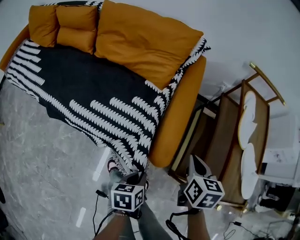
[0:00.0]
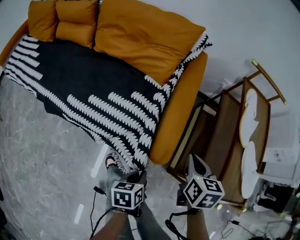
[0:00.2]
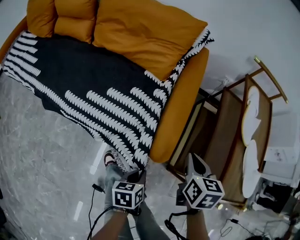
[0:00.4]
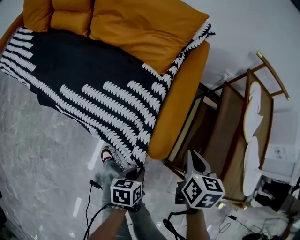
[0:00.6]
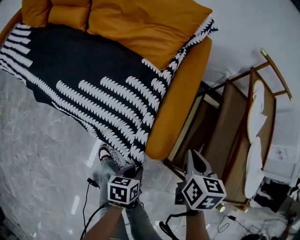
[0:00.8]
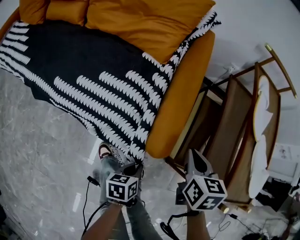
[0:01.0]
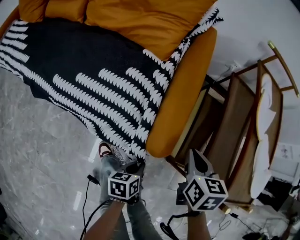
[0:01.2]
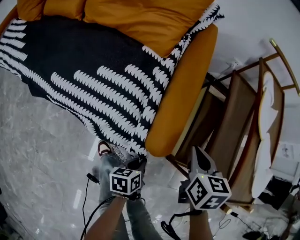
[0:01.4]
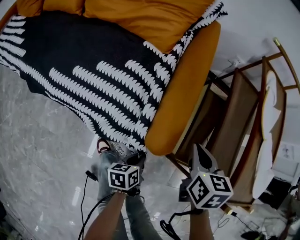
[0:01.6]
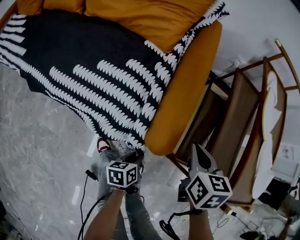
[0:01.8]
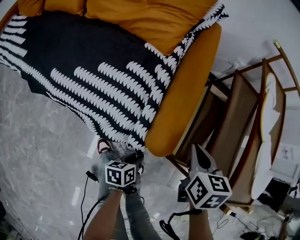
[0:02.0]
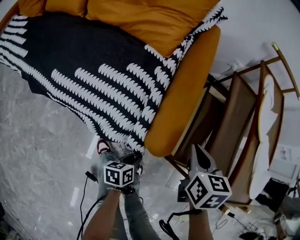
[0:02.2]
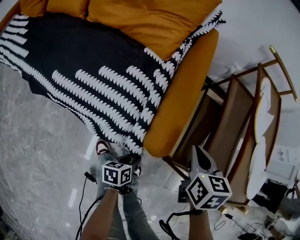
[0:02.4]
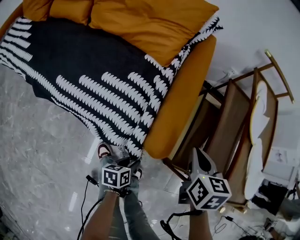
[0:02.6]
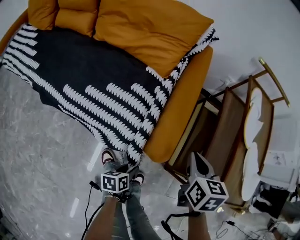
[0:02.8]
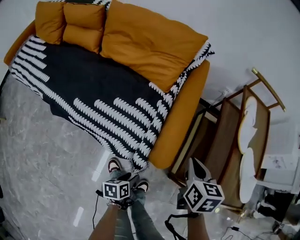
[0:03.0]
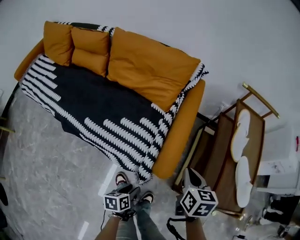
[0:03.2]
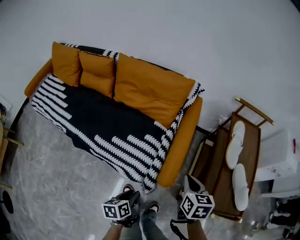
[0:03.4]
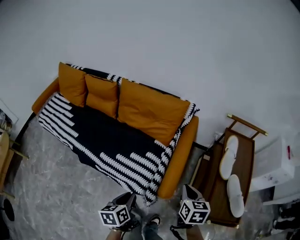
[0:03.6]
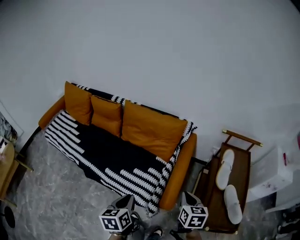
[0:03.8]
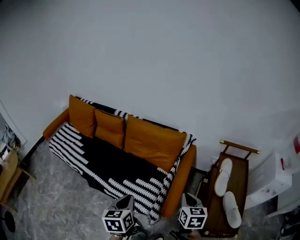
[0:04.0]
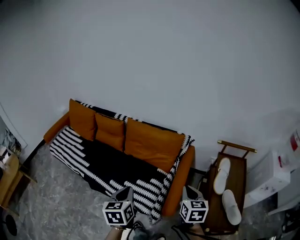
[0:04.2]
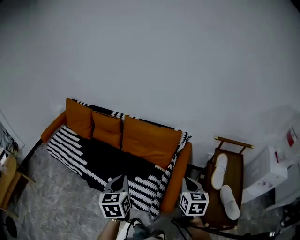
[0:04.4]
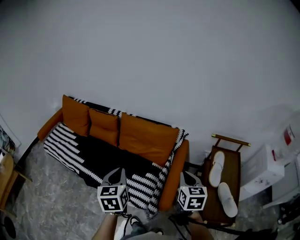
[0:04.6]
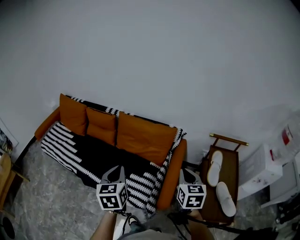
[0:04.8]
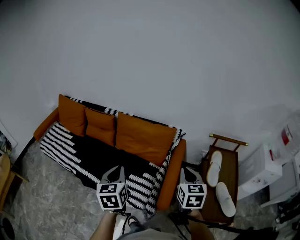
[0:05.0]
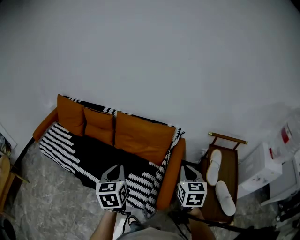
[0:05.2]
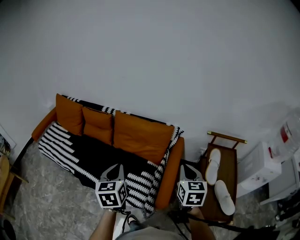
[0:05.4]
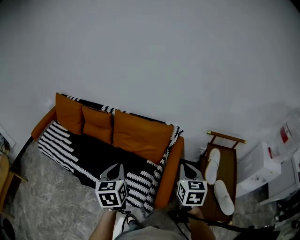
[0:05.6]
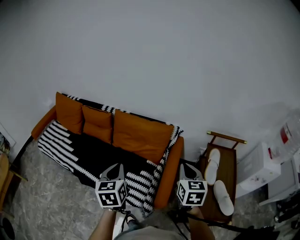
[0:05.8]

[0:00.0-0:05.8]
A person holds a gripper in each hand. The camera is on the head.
0:00.0 to 0:01.4: The right gripper is displaced downward by some 10 cm. The left gripper moves downward, about 15 cm.
0:01.4 to 0:02.8: The right gripper shifts approximately 5 cm upward, while the left gripper ends up roughly 5 cm from where it was, and opens.
0:02.8 to 0:04.4: The right gripper goes roughly 35 cm upward, and changes its angle by some 20 degrees. The left gripper heads upward, covering roughly 60 cm, turns by approximately 50 degrees, and closes up.
0:04.4 to 0:05.8: The grippers move only a little.

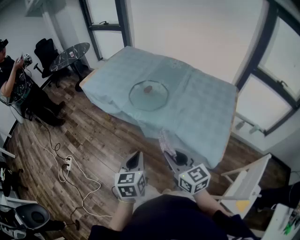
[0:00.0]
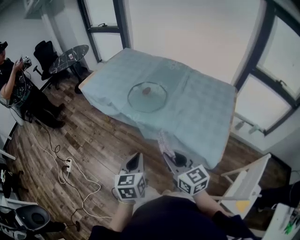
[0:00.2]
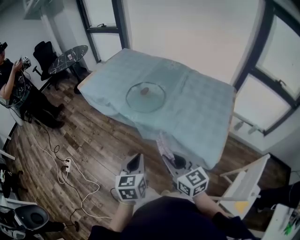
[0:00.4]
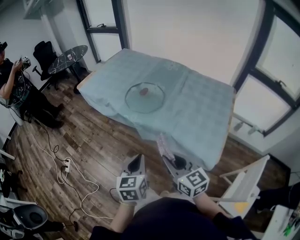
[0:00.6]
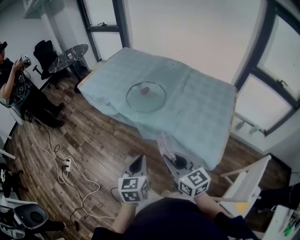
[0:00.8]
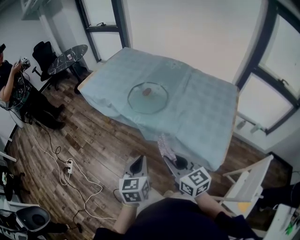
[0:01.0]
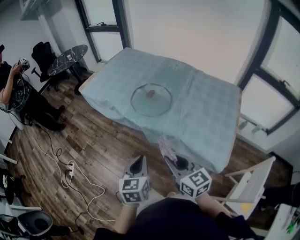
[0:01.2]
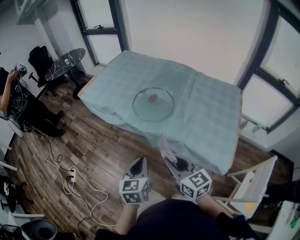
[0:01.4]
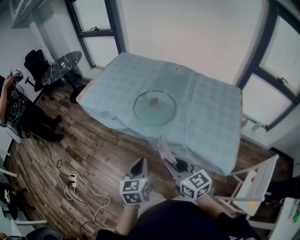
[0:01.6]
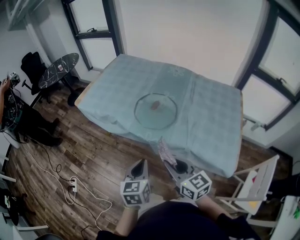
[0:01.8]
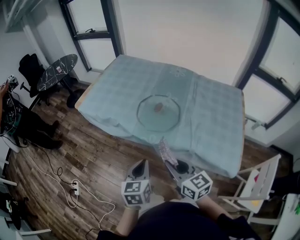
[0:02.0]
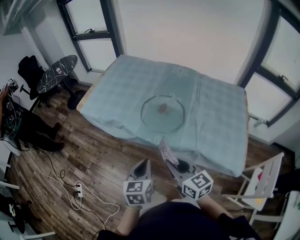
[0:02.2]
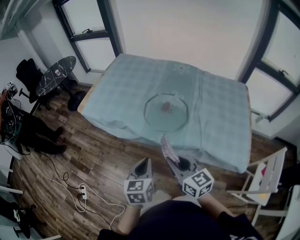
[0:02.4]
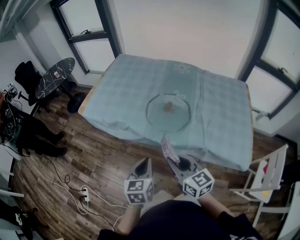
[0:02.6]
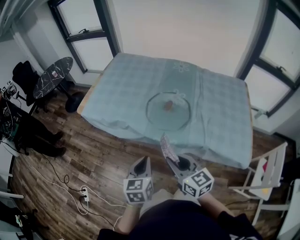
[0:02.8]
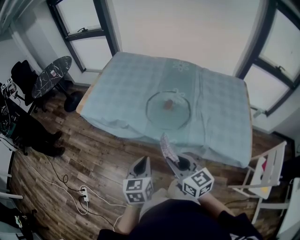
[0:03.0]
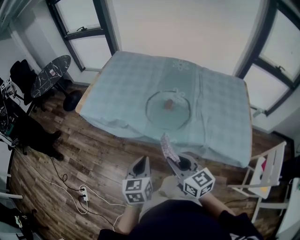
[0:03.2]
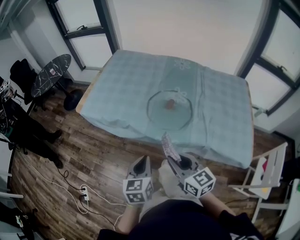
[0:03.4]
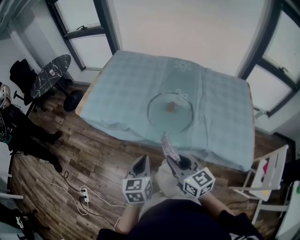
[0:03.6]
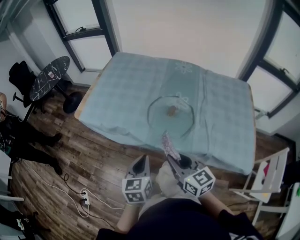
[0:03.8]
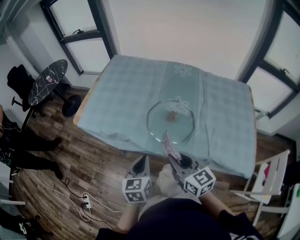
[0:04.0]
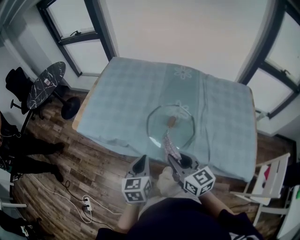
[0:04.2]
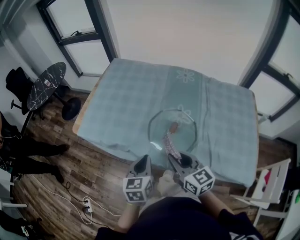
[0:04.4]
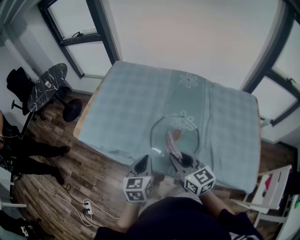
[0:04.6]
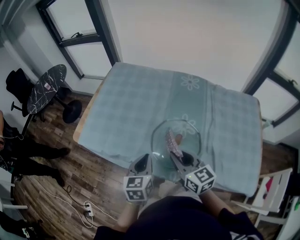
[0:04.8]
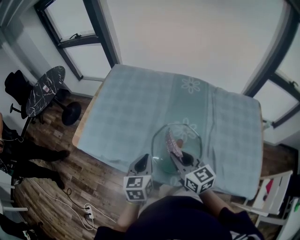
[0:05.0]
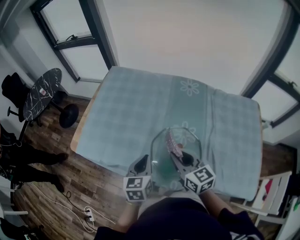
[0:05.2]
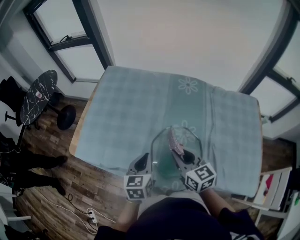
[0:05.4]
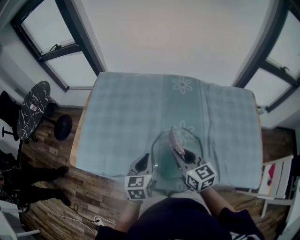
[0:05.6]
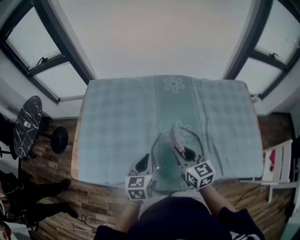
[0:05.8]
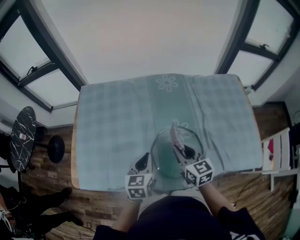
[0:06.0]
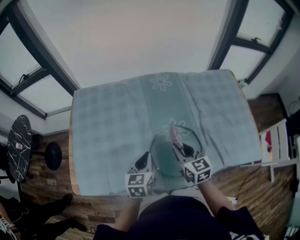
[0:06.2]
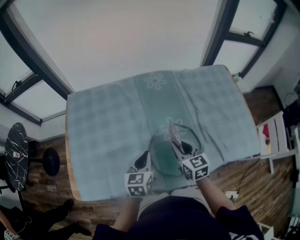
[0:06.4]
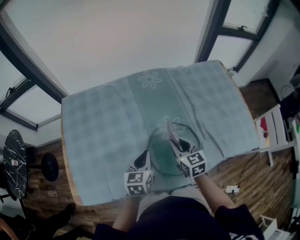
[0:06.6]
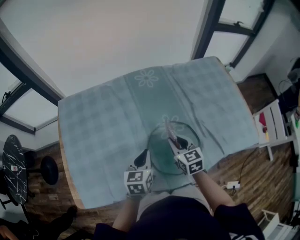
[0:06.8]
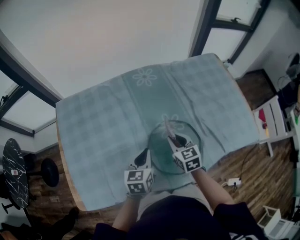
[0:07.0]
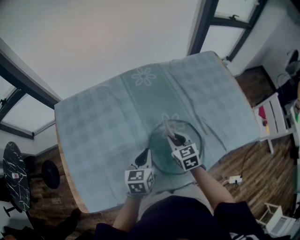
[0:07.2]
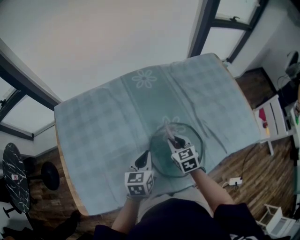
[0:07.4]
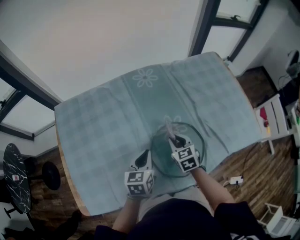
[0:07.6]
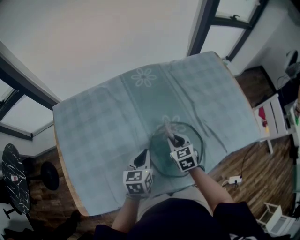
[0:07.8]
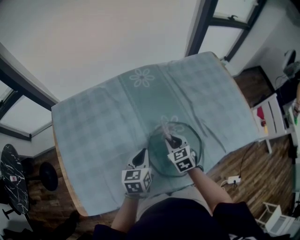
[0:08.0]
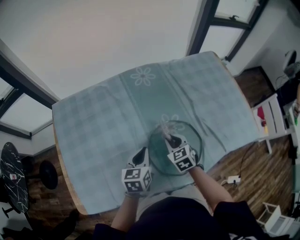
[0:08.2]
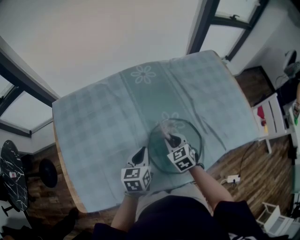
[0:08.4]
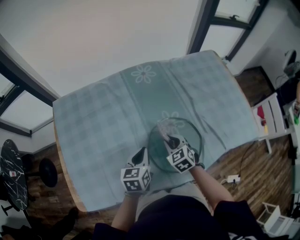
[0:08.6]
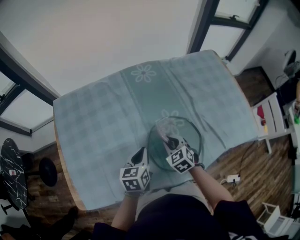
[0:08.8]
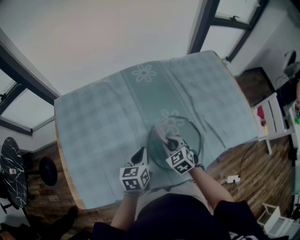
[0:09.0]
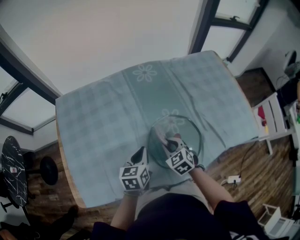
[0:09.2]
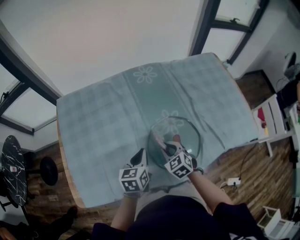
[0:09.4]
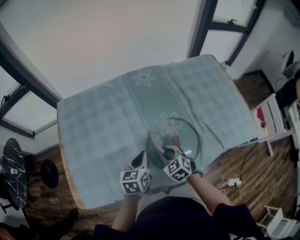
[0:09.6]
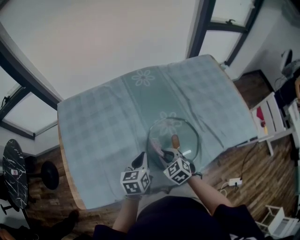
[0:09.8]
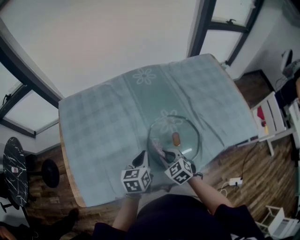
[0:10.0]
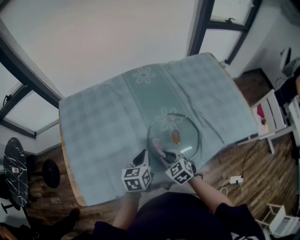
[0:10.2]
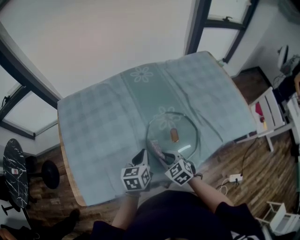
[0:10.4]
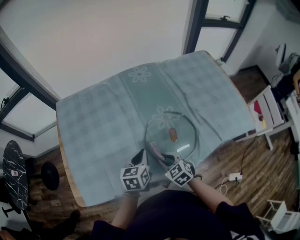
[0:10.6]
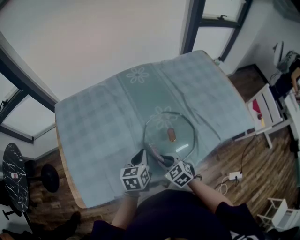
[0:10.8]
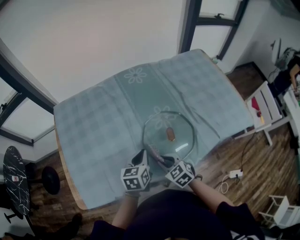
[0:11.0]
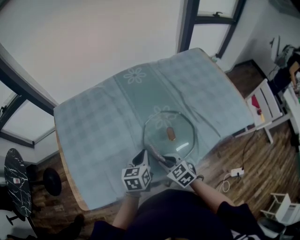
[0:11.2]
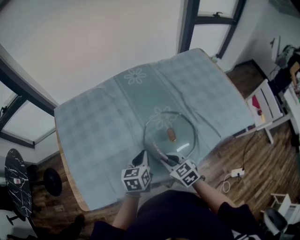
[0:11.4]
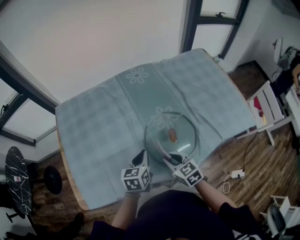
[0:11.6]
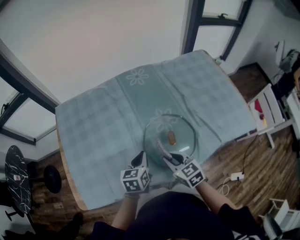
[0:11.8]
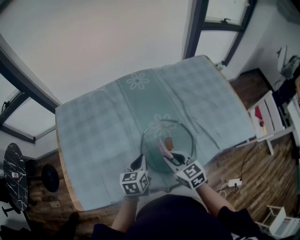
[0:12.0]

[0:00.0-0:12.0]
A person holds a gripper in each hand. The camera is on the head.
0:00.0 to 0:01.6: The left gripper travels forward by roughly 10 cm. The right gripper heads forward and to the left, covering roughly 10 cm.
0:01.6 to 0:03.0: Both grippers move to the left and forward, some 15 cm.
0:03.0 to 0:04.4: The grippers both shift forward by some 20 cm.
0:04.4 to 0:06.0: The left gripper changes place by roughly 20 cm, and rotates some 20 degrees. The right gripper shifts by roughly 20 cm, and rotates some 30 degrees.
0:06.0 to 0:07.6: The right gripper heads downward and forward, covering about 15 cm, and swivels some 30 degrees. The left gripper is displaced forward and downward by approximately 10 cm.
0:07.6 to 0:09.0: The right gripper travels backward by some 5 cm.
0:09.0 to 0:10.4: The right gripper heads backward, covering some 10 cm.
0:10.4 to 0:12.0: The right gripper shifts roughly 10 cm upward and to the right, and turns by about 20 degrees.

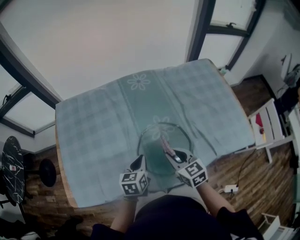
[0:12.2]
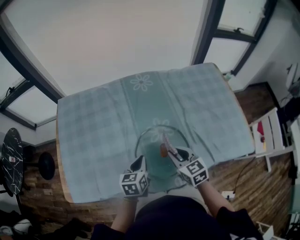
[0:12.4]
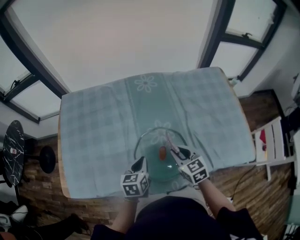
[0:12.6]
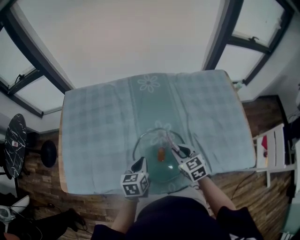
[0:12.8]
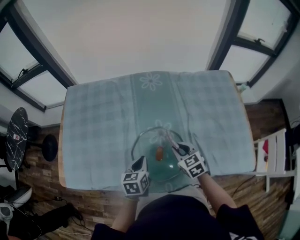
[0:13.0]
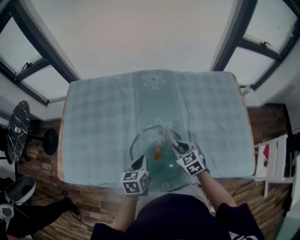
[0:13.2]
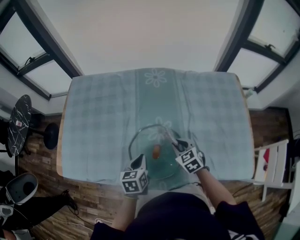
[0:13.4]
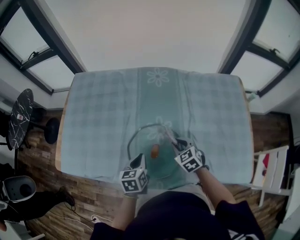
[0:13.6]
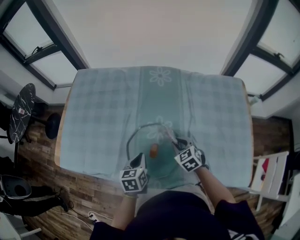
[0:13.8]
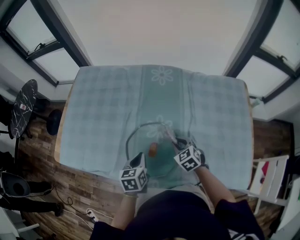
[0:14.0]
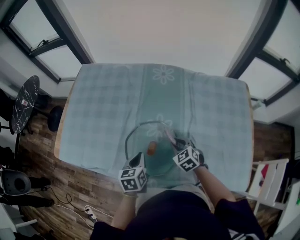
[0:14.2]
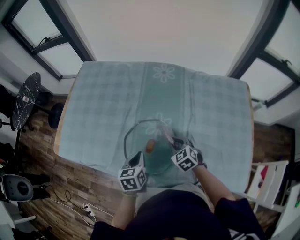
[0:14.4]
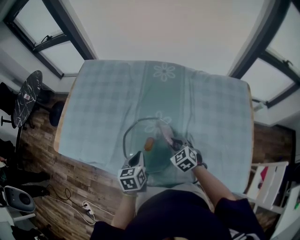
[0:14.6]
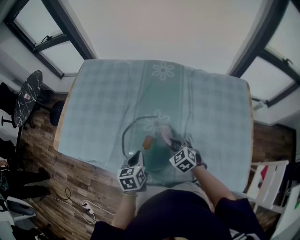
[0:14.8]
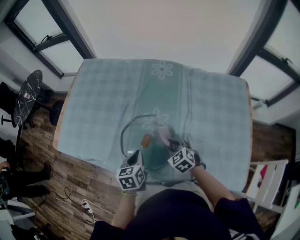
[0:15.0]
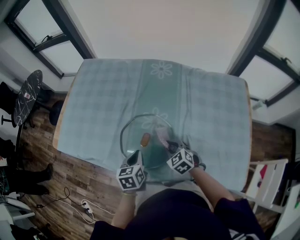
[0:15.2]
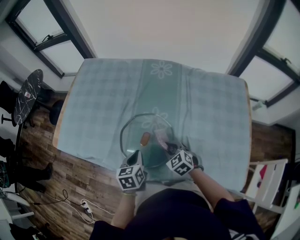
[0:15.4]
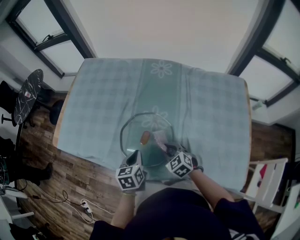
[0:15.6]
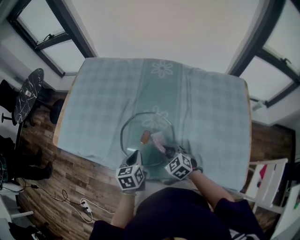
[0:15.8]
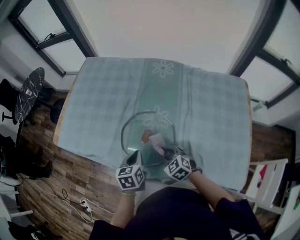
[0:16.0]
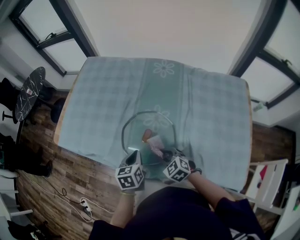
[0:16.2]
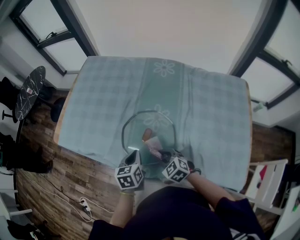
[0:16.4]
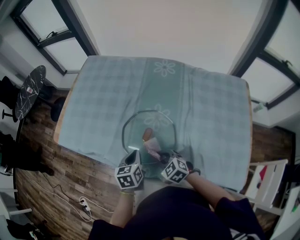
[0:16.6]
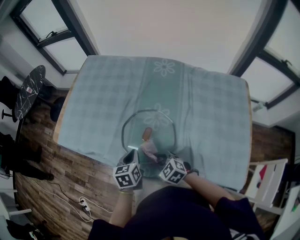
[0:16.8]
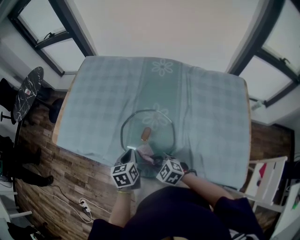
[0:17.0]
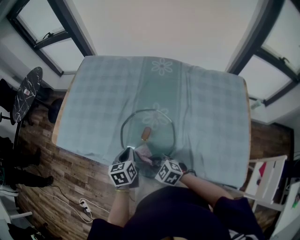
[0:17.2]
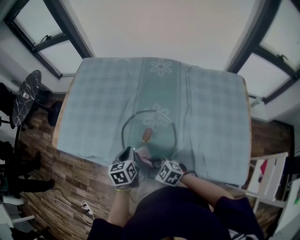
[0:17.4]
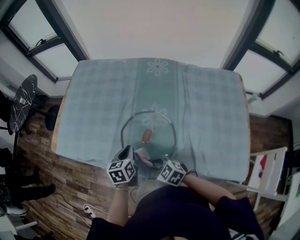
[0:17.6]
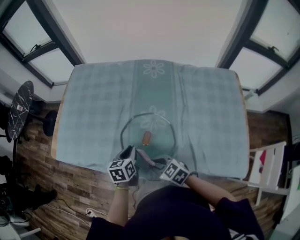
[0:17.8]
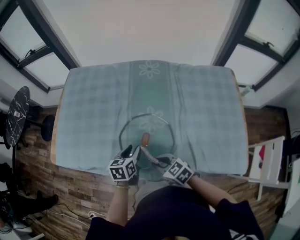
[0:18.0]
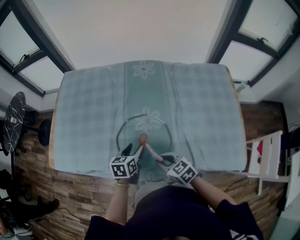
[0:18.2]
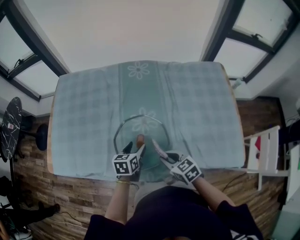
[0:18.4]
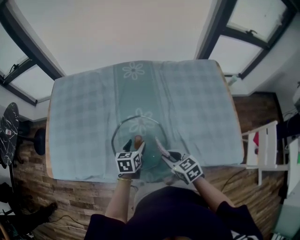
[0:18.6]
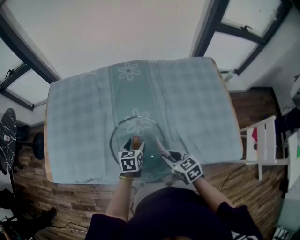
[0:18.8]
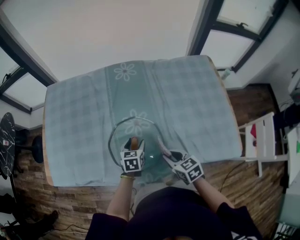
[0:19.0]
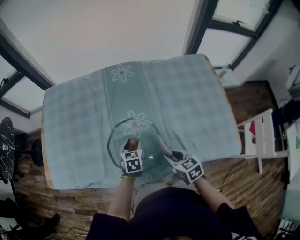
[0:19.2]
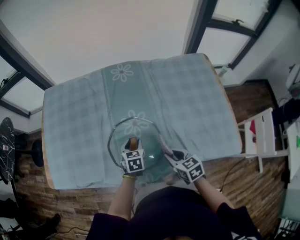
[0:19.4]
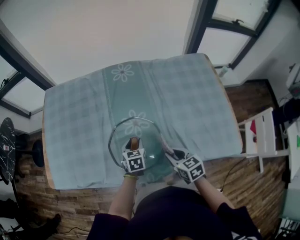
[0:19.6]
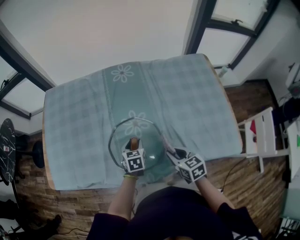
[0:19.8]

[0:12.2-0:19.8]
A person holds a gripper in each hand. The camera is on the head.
0:12.2 to 0:13.8: The right gripper moves to the right, downward and forward, some 15 cm, and rotates some 30 degrees, while the left gripper shifts about 5 cm to the right, and changes its angle by some 30 degrees.
0:13.8 to 0:15.2: The left gripper moves some 5 cm. Meanwhile the right gripper travels backward by some 5 cm.
0:15.2 to 0:16.8: The right gripper goes some 10 cm to the left and backward.
0:16.8 to 0:18.2: The right gripper turns by roughly 30 degrees. The left gripper moves to the right, some 5 cm, rotates about 20 degrees, and opens up.
0:18.2 to 0:19.8: The left gripper moves roughly 10 cm, while the right gripper travels to the right by some 10 cm, and changes its angle by some 30 degrees.
